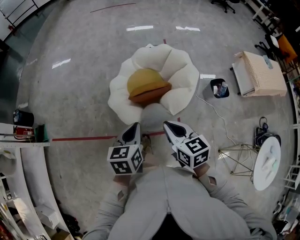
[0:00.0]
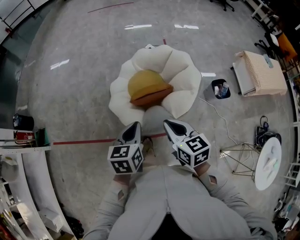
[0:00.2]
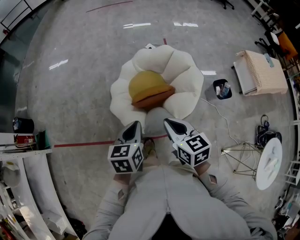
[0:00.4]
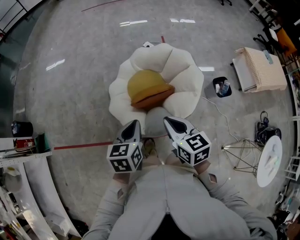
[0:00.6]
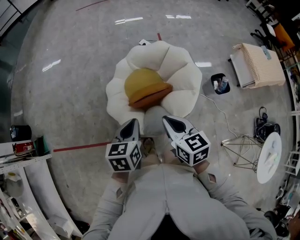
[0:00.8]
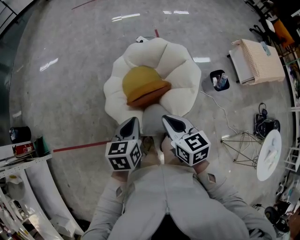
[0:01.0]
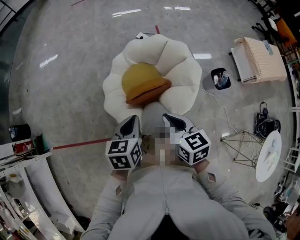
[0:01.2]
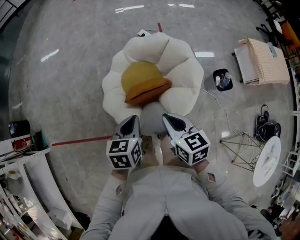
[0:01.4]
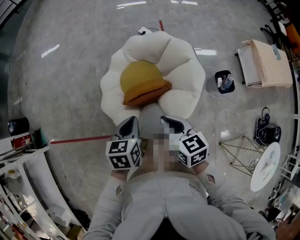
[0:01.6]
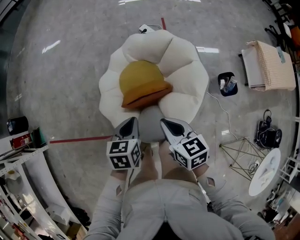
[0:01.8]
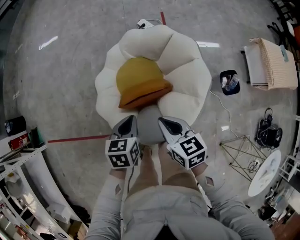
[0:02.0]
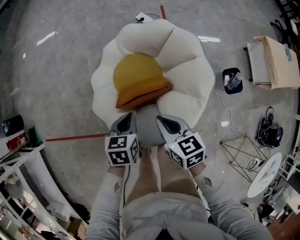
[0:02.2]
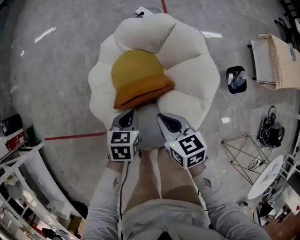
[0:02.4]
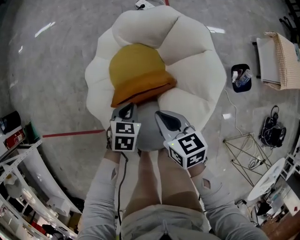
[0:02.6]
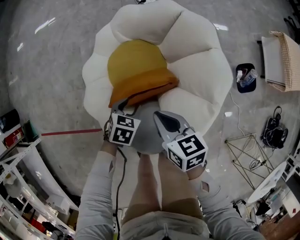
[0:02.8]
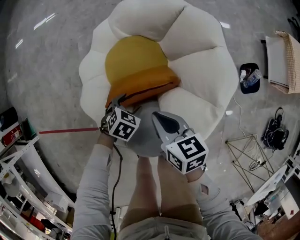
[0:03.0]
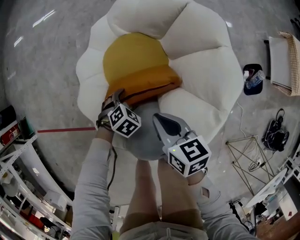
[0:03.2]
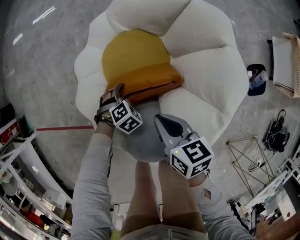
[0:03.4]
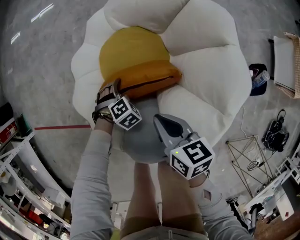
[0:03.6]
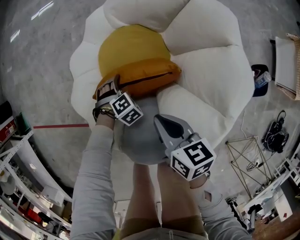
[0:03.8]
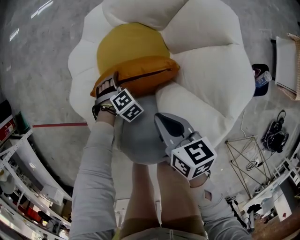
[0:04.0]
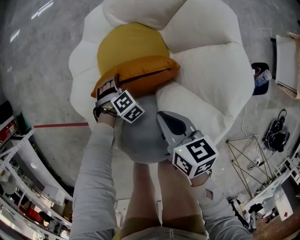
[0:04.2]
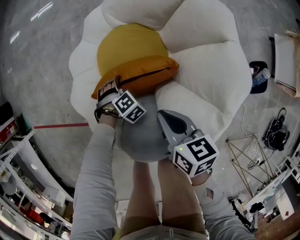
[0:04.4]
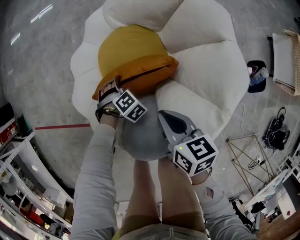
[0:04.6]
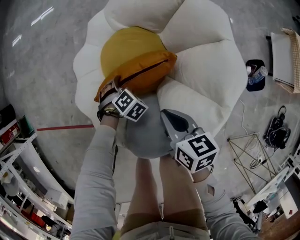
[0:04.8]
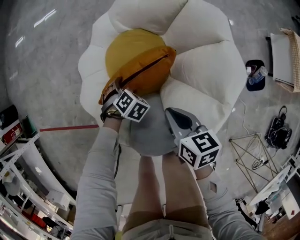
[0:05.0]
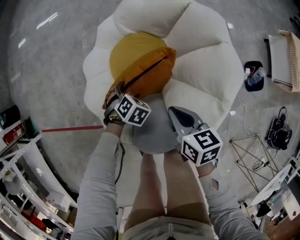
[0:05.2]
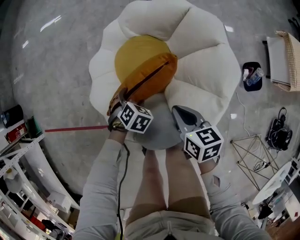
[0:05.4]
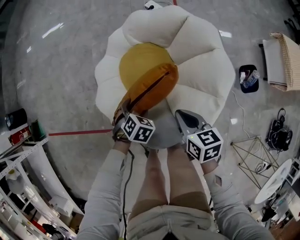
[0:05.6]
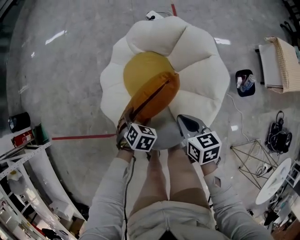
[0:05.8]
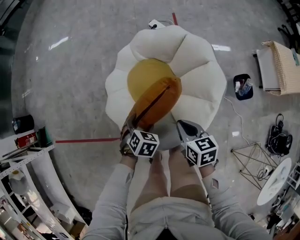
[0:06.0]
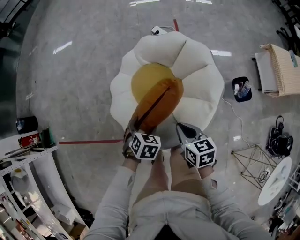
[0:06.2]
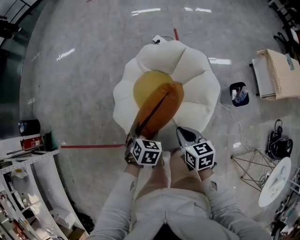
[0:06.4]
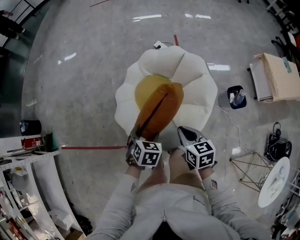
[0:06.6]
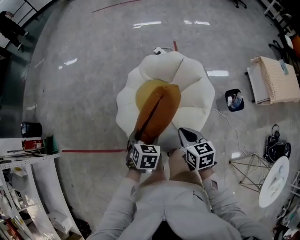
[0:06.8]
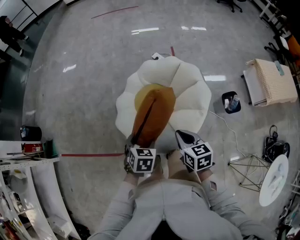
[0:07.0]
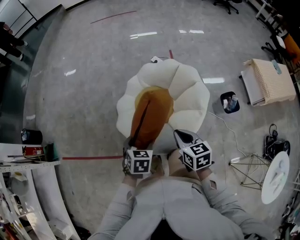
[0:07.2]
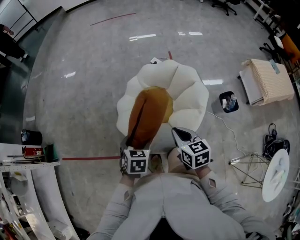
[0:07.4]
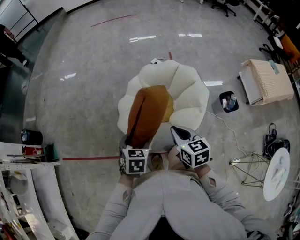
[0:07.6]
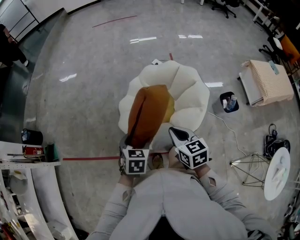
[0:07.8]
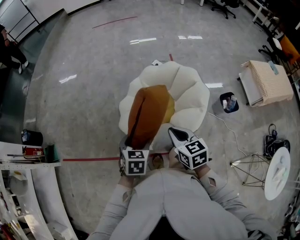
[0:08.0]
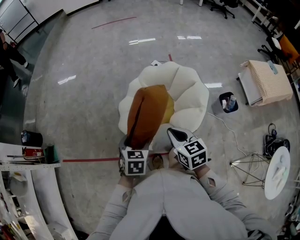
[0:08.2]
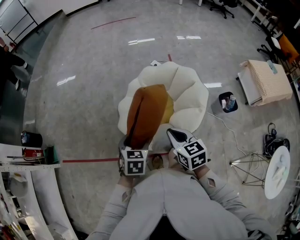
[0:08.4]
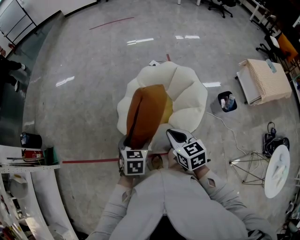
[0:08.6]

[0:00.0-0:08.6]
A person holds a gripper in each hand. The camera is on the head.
0:00.0 to 0:01.4: Both grippers travel together forward, about 15 cm.
0:01.4 to 0:02.8: The left gripper goes some 35 cm downward, swivels approximately 40 degrees, and opens up. The right gripper moves downward and forward, some 25 cm.
0:02.8 to 0:04.4: The right gripper travels downward by roughly 10 cm. Meanwhile the left gripper is displaced downward by approximately 15 cm, changes its angle by approximately 40 degrees, and opens.
0:04.4 to 0:05.8: The left gripper travels upward by about 20 cm, and swivels about 30 degrees; the right gripper shifts about 10 cm upward.
0:05.8 to 0:07.2: Both grippers travel together upward and backward, some 20 cm. The left gripper turns by about 20 degrees.
0:07.2 to 0:08.6: The right gripper shifts roughly 5 cm to the left. Meanwhile the left gripper ends up about 5 cm from where it was.

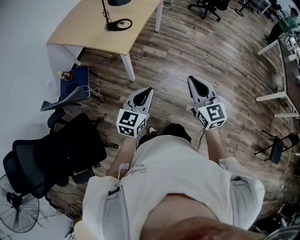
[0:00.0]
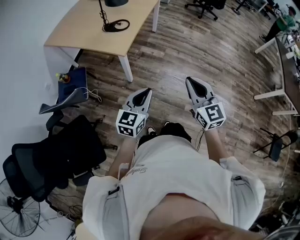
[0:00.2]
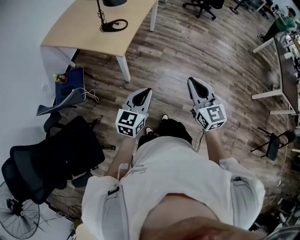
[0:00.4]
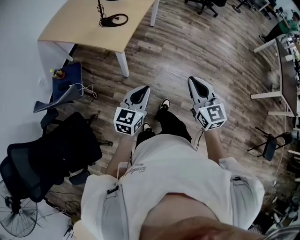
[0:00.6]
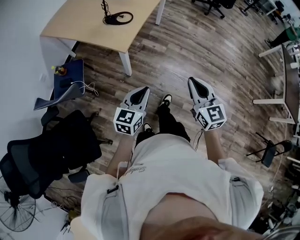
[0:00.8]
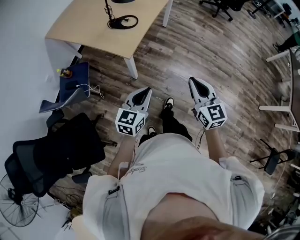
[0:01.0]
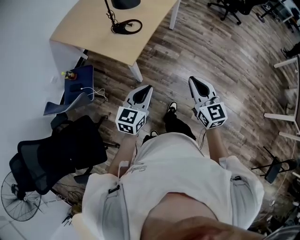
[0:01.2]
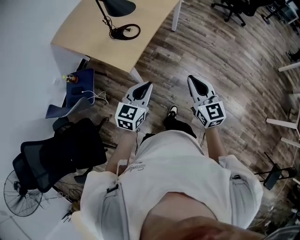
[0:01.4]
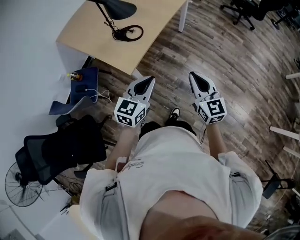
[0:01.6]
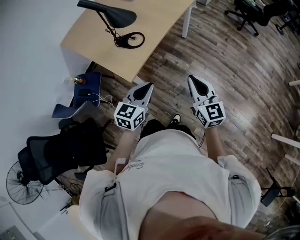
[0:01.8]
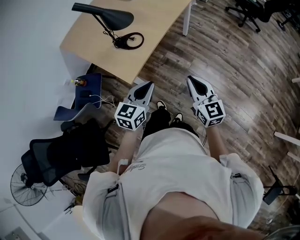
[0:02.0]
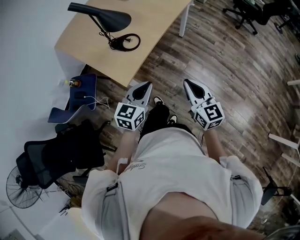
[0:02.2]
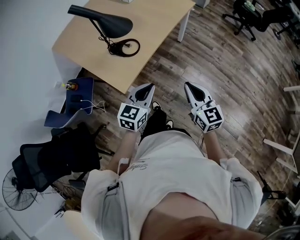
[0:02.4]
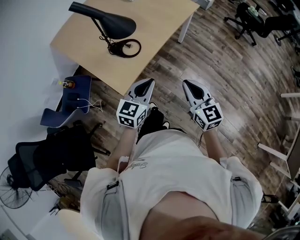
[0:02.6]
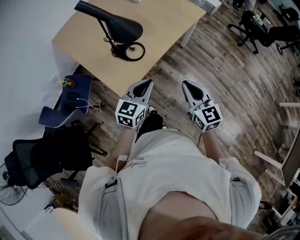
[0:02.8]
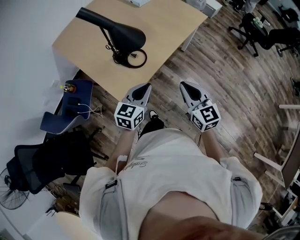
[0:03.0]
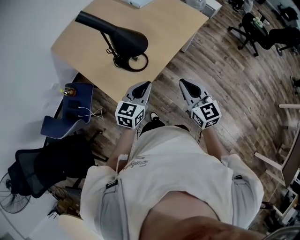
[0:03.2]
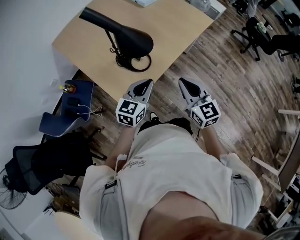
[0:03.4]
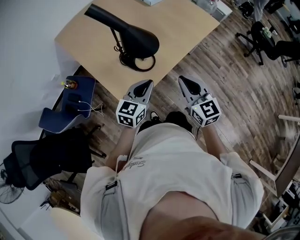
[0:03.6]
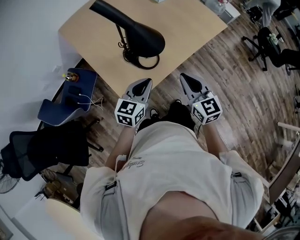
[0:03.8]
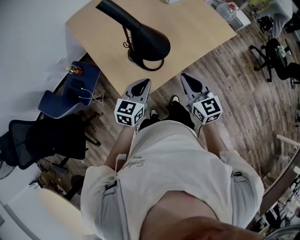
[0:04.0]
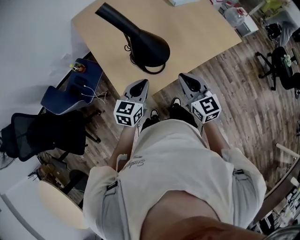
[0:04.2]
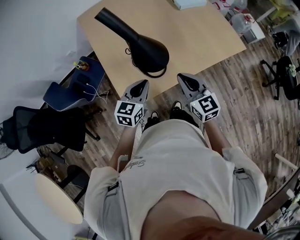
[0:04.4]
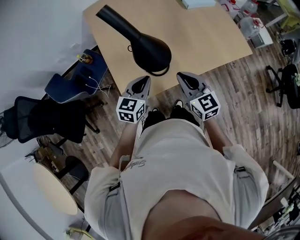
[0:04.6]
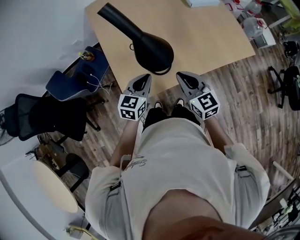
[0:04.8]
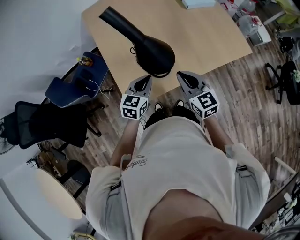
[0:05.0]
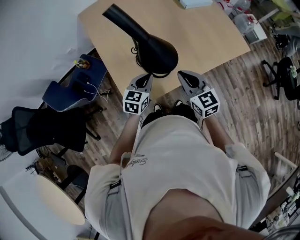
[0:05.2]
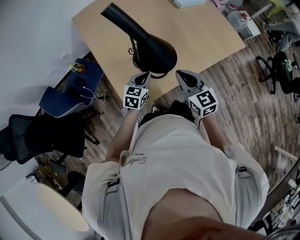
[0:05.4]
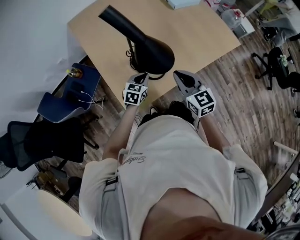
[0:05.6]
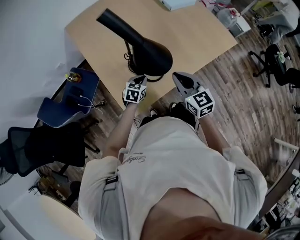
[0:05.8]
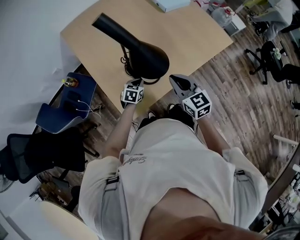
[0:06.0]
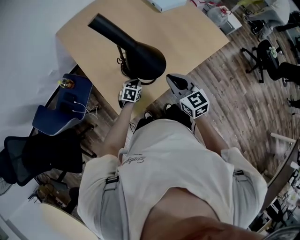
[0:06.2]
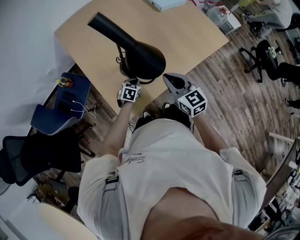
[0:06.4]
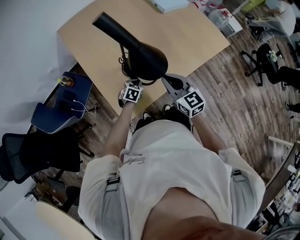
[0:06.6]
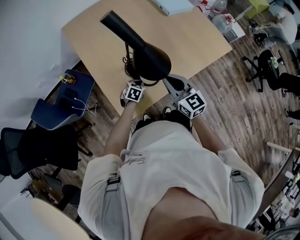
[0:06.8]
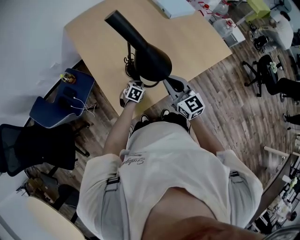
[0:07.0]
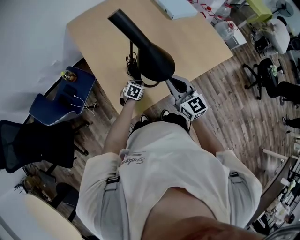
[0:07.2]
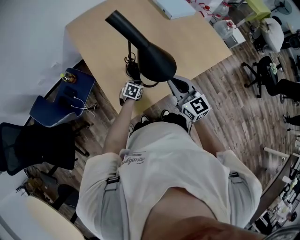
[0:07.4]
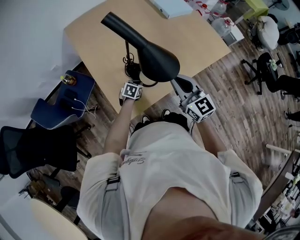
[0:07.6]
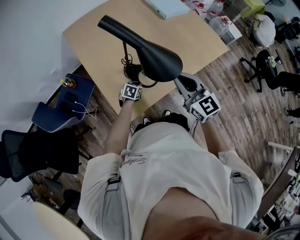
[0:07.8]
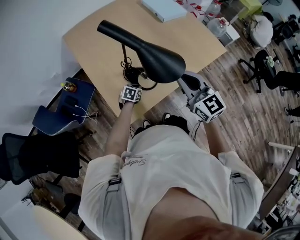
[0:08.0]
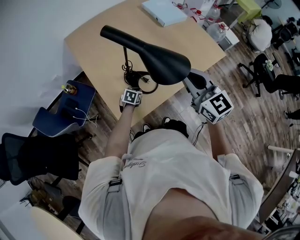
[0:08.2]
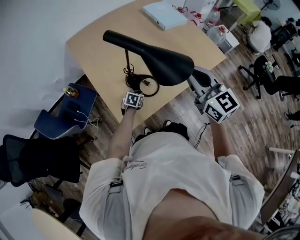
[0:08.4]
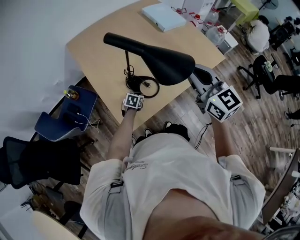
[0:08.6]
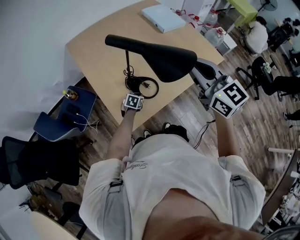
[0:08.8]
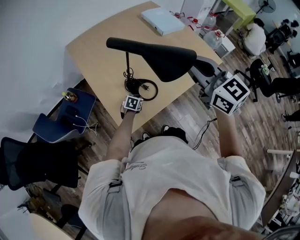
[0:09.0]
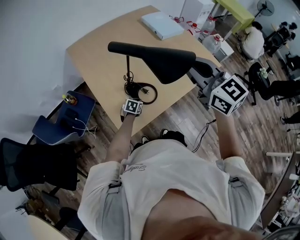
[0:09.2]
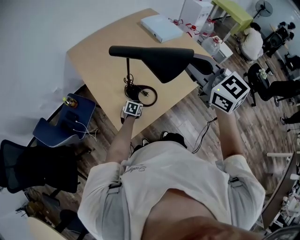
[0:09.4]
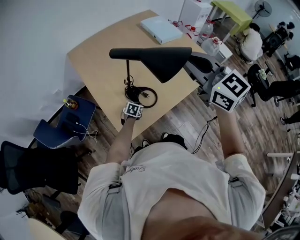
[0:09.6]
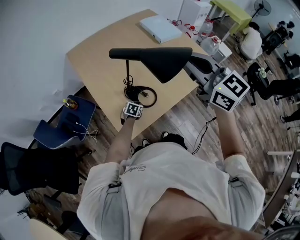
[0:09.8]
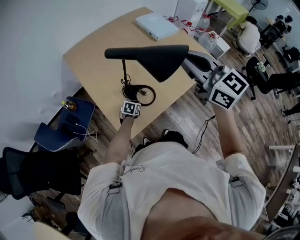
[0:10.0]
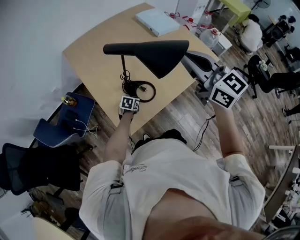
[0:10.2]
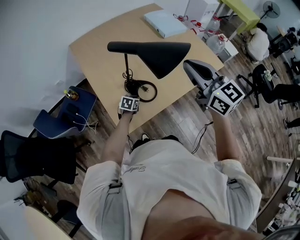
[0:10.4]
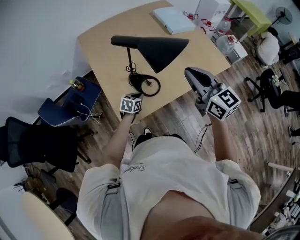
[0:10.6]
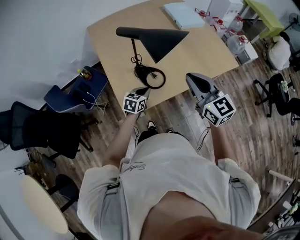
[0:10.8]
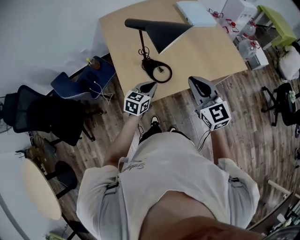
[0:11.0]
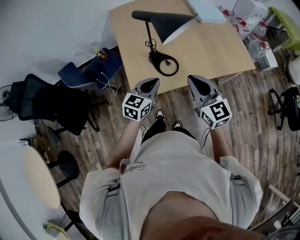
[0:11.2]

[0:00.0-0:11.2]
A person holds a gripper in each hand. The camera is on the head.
0:00.0 to 0:01.6: Both grippers travel together forward, roughly 30 cm.
0:01.6 to 0:03.2: The grippers both shift forward by some 25 cm.
0:03.2 to 0:04.8: The right gripper ends up about 20 cm from where it was, and rotates about 30 degrees. Meanwhile the left gripper moves about 15 cm, and rotates some 30 degrees.
0:04.8 to 0:06.4: The left gripper is displaced downward by approximately 25 cm, and turns by roughly 30 degrees.
0:06.4 to 0:08.0: The right gripper moves upward, roughly 10 cm.
0:08.0 to 0:09.6: The right gripper is displaced upward by about 20 cm.
0:09.6 to 0:11.2: The left gripper is displaced upward and backward by roughly 30 cm, and points its fingers some 30 degrees further upward, while the right gripper shifts some 20 cm downward and backward.

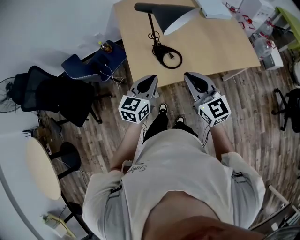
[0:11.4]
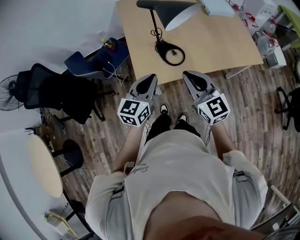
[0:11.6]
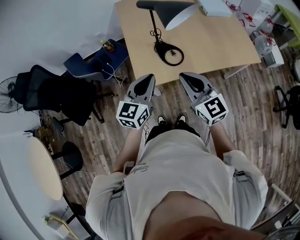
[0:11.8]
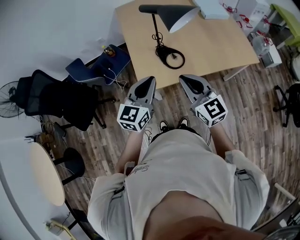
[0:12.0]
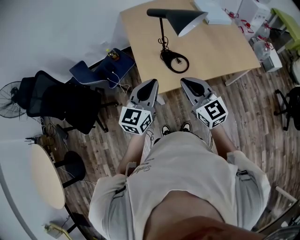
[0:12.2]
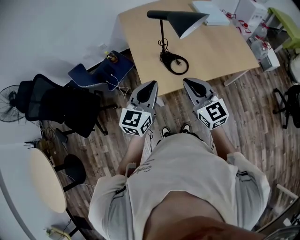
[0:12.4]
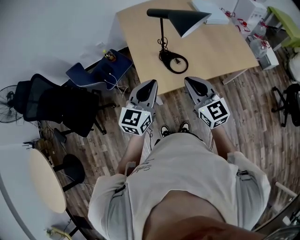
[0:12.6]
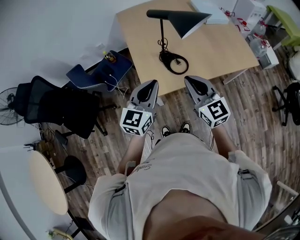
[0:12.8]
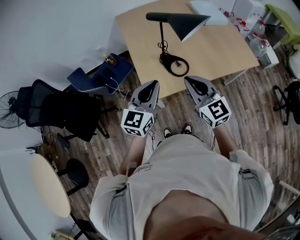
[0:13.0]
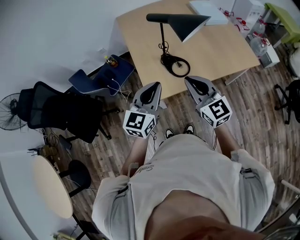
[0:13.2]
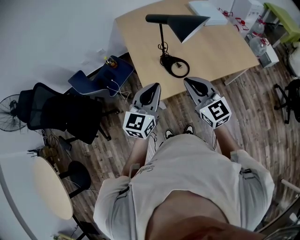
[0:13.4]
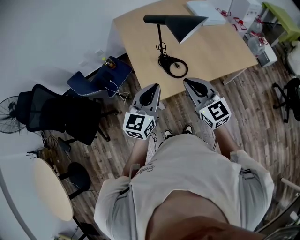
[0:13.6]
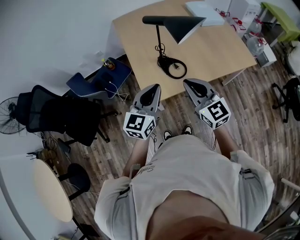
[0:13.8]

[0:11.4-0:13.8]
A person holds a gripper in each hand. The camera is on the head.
0:11.4 to 0:12.6: The right gripper goes roughly 5 cm to the left. The left gripper moves upward and to the left, about 10 cm.
0:12.6 to 0:13.8: There are only small adjustments of the grippers.

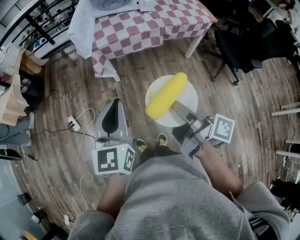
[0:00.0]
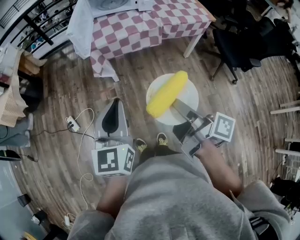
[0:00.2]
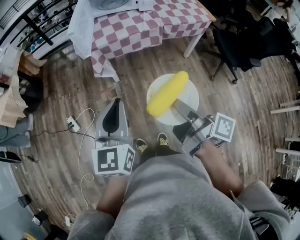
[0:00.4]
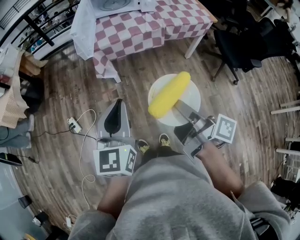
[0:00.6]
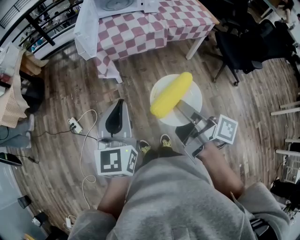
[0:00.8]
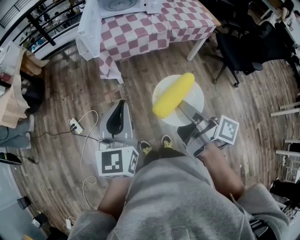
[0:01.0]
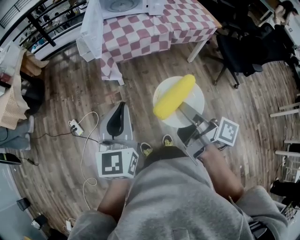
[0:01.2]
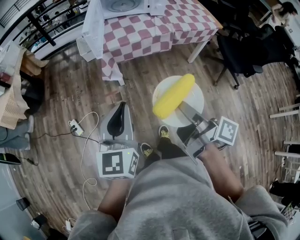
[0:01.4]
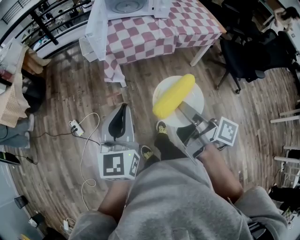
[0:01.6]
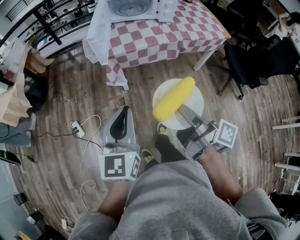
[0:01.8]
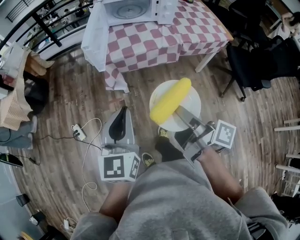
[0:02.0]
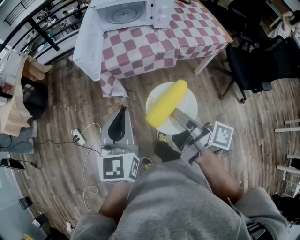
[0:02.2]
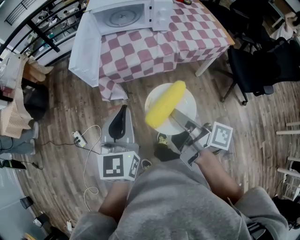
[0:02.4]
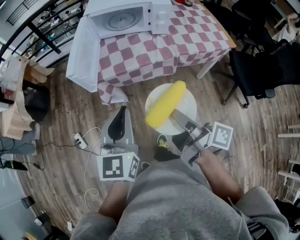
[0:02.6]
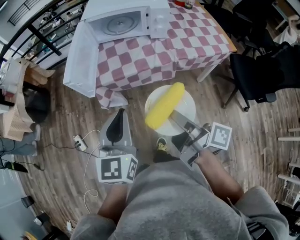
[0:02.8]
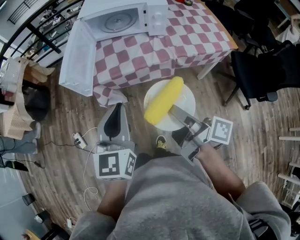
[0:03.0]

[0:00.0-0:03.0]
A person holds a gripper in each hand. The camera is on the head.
0:00.0 to 0:01.6: The left gripper goes approximately 5 cm to the left. Meanwhile the right gripper travels to the left and forward by roughly 10 cm.
0:01.6 to 0:03.0: Both grippers travel together forward and to the right, about 25 cm.
